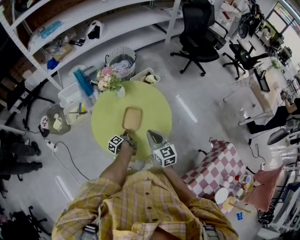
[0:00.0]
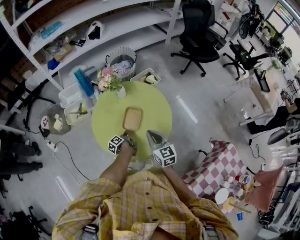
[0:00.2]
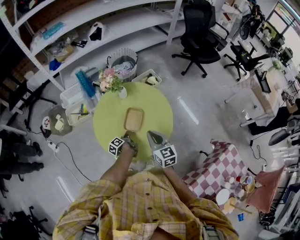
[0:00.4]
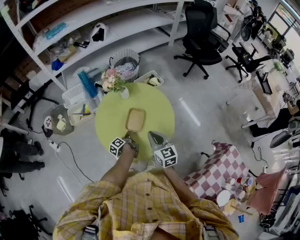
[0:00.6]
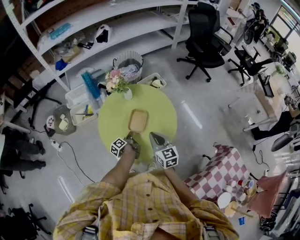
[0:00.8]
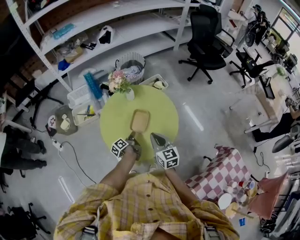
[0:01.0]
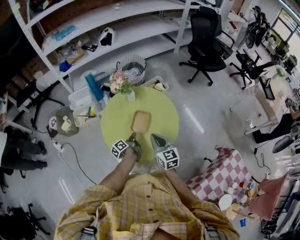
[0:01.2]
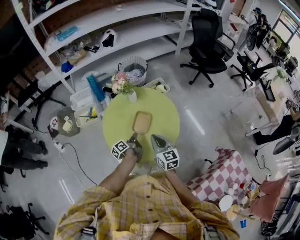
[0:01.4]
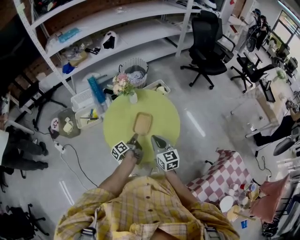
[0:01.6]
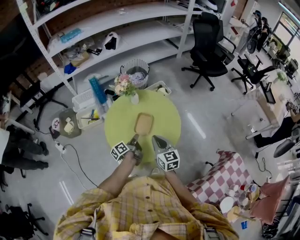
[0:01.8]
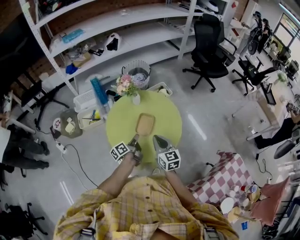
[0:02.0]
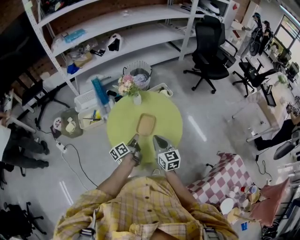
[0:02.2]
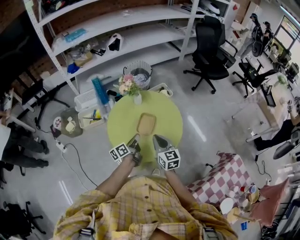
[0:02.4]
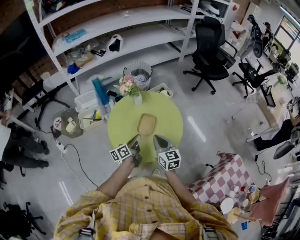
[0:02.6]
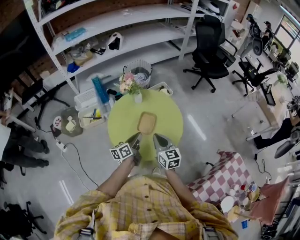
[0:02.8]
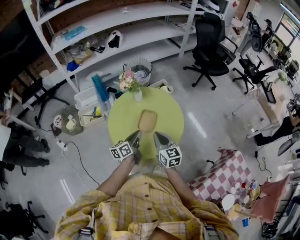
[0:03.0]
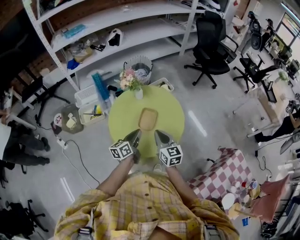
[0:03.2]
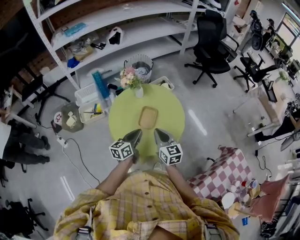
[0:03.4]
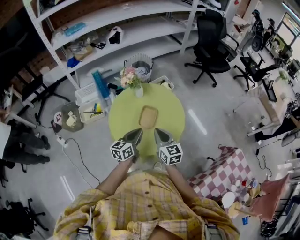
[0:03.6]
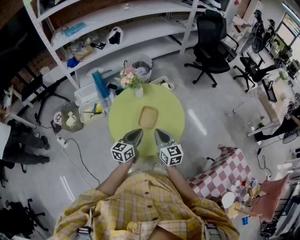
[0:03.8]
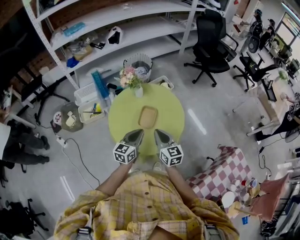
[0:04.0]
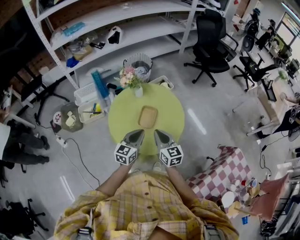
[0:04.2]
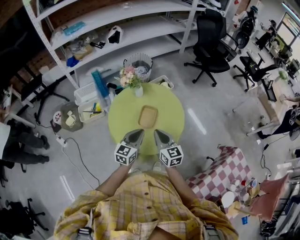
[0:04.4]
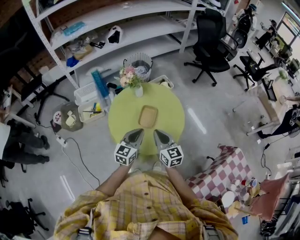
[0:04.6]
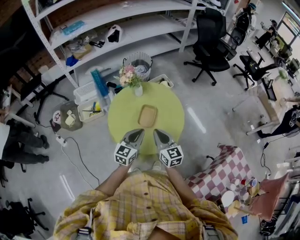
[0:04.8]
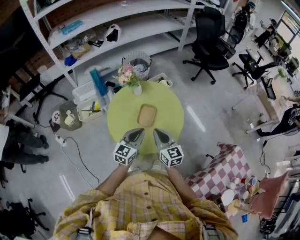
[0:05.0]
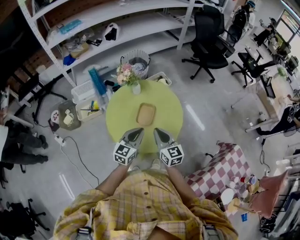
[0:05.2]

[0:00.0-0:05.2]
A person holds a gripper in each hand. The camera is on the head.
0:00.0 to 0:01.8: The right gripper moves about 5 cm.

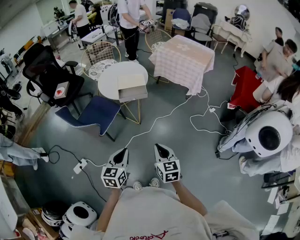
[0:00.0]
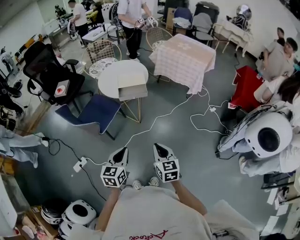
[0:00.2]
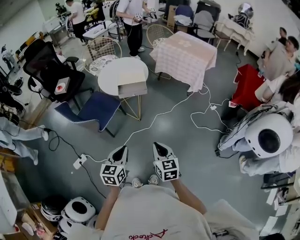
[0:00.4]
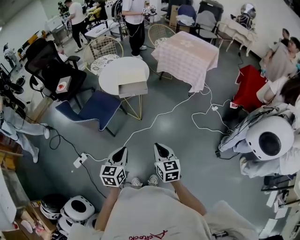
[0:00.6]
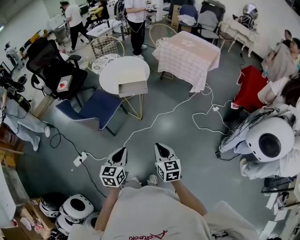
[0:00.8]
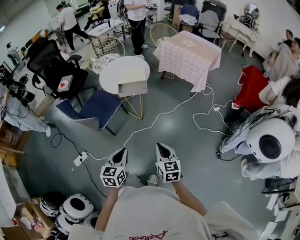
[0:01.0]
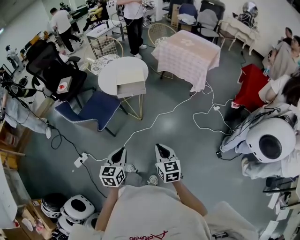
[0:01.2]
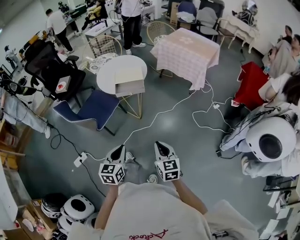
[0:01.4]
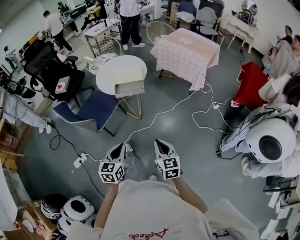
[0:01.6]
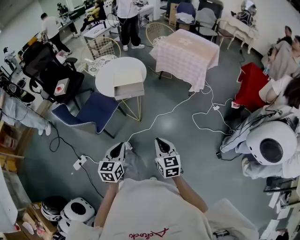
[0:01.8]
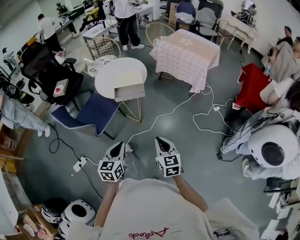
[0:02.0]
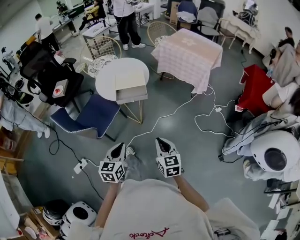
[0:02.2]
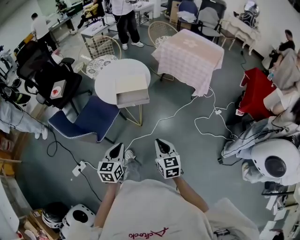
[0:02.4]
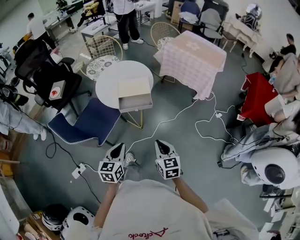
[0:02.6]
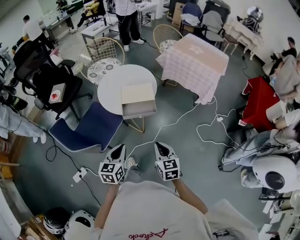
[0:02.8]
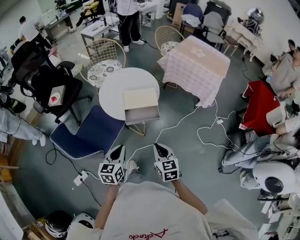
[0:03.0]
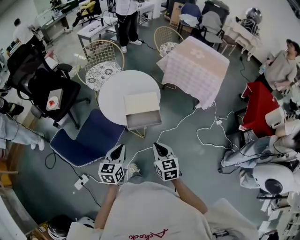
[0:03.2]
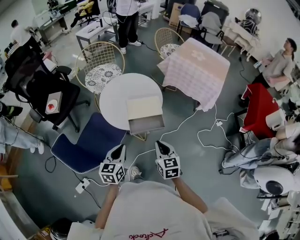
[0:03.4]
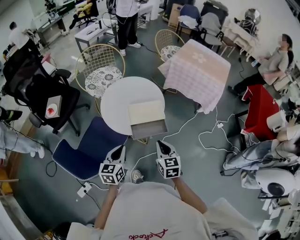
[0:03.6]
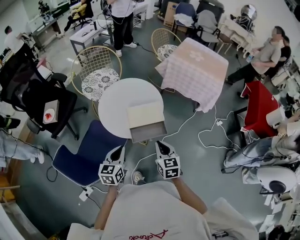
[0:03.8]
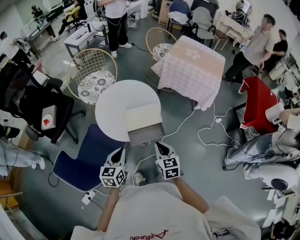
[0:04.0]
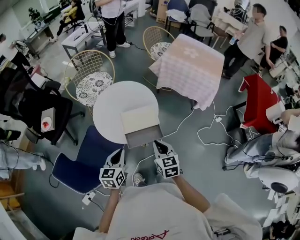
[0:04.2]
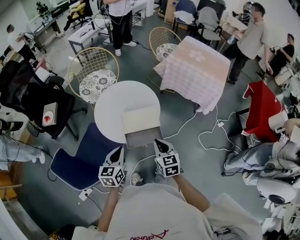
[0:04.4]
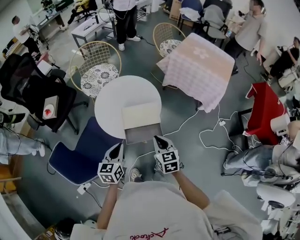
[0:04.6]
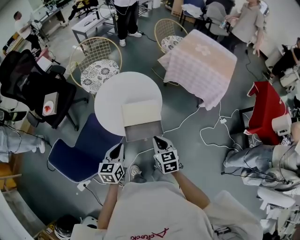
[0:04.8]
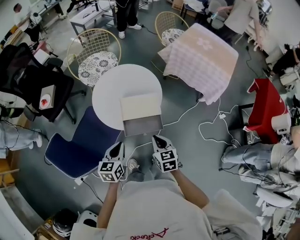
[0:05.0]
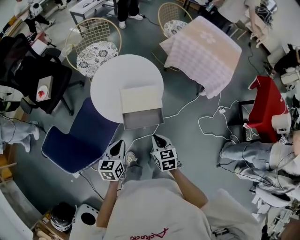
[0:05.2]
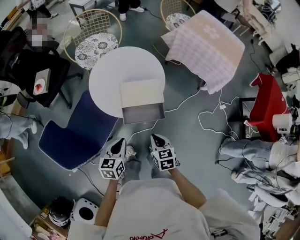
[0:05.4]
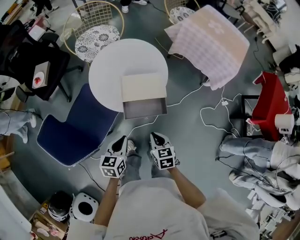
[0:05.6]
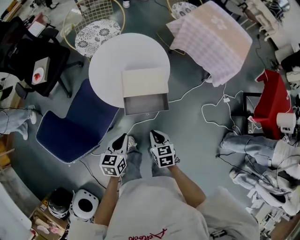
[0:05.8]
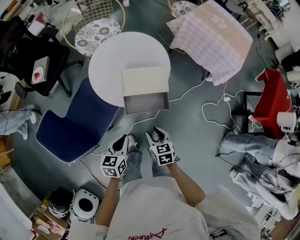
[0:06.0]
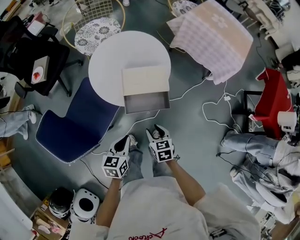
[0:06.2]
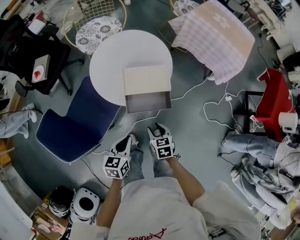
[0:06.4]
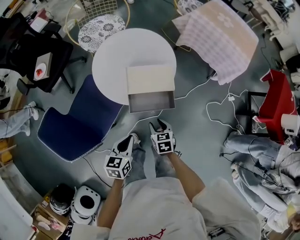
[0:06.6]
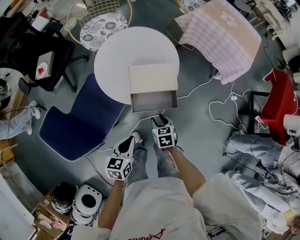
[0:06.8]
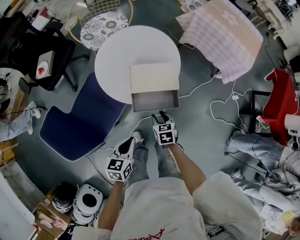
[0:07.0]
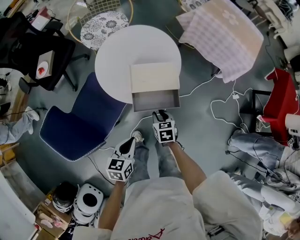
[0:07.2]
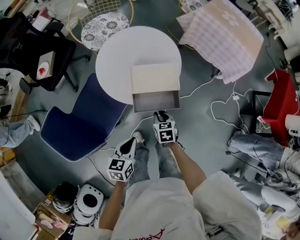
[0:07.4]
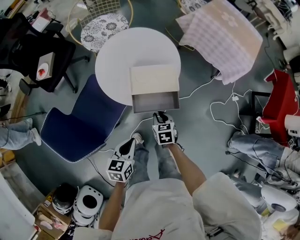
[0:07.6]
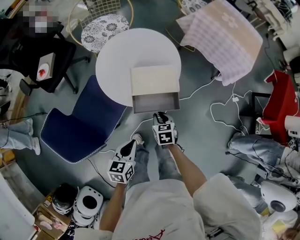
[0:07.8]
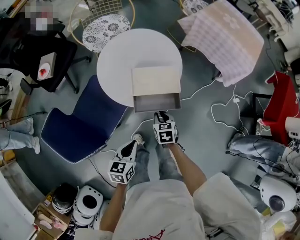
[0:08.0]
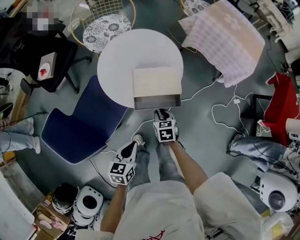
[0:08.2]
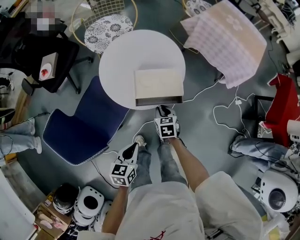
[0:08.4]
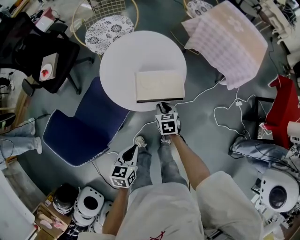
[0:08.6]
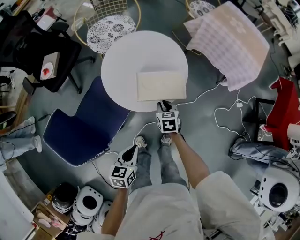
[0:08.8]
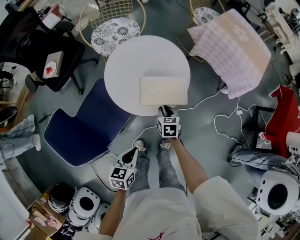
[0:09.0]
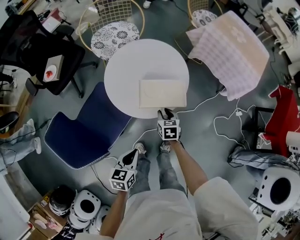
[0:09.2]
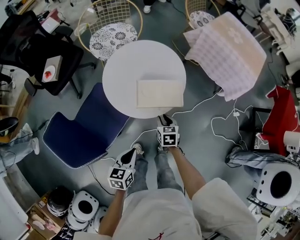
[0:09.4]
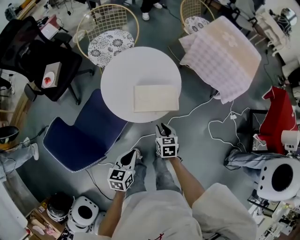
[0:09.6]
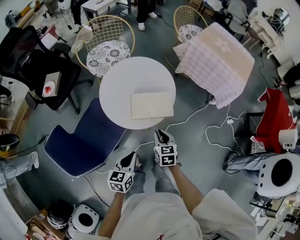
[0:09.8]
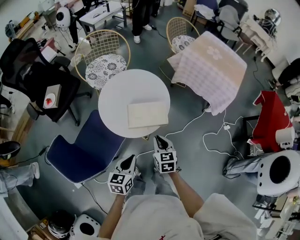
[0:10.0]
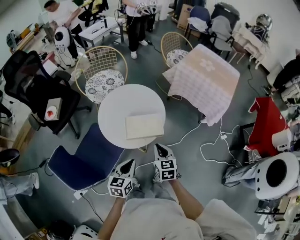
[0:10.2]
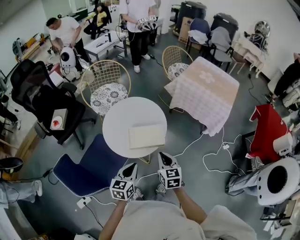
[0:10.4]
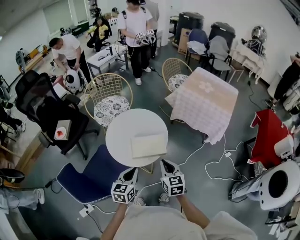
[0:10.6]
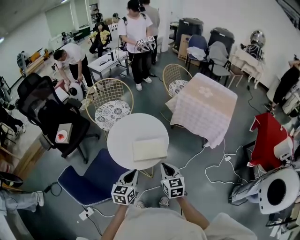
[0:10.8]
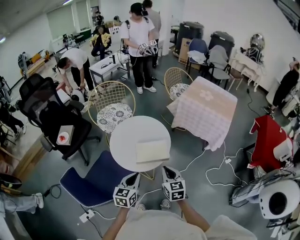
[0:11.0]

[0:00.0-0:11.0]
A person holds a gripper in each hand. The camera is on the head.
0:00.0 to 0:01.6: The left gripper shifts by about 5 cm; the right gripper moves to the right, approximately 5 cm.
0:01.6 to 0:03.2: Both grippers move forward and to the left, about 30 cm.
0:03.2 to 0:04.8: Both grippers move forward, roughly 10 cm.
0:04.8 to 0:06.2: The grippers both shift downward and backward by some 15 cm. The right gripper opens up.
0:06.2 to 0:07.8: The right gripper goes approximately 10 cm forward, and closes.
0:07.8 to 0:09.4: The right gripper shifts approximately 5 cm forward.
0:09.4 to 0:11.0: The right gripper goes roughly 25 cm upward, rotates roughly 30 degrees, and closes. Meanwhile the left gripper heads upward and forward, covering some 15 cm, and swivels some 20 degrees.

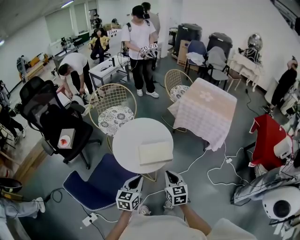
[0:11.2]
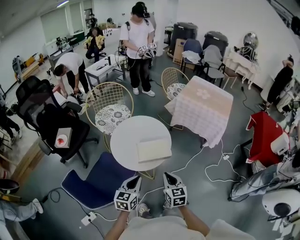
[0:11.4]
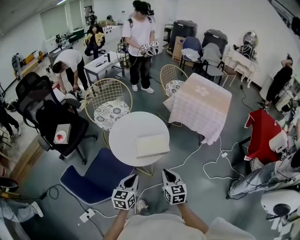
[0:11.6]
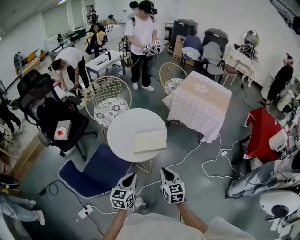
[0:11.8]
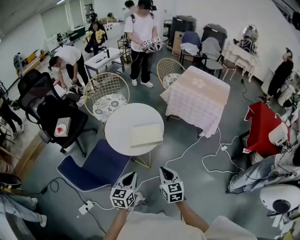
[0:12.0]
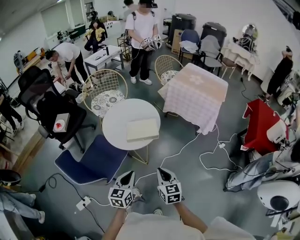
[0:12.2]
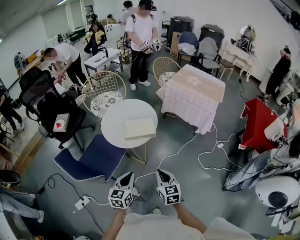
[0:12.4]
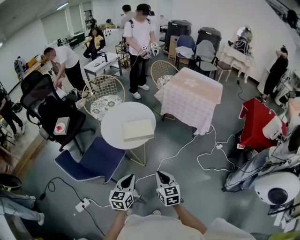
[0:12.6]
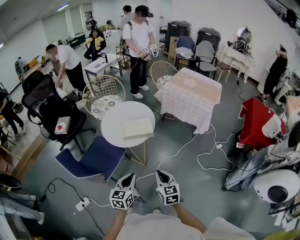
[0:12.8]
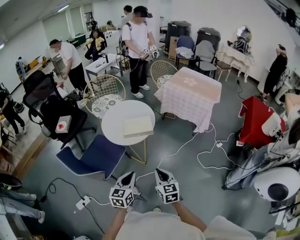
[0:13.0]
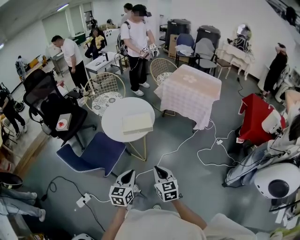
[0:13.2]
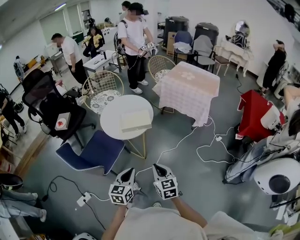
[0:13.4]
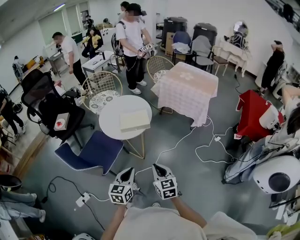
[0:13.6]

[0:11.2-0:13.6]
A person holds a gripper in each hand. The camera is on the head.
0:11.2 to 0:12.4: Both grippers travel together backward and to the right, some 20 cm.
0:12.4 to 0:13.6: The two grippers go roughly 5 cm backward.

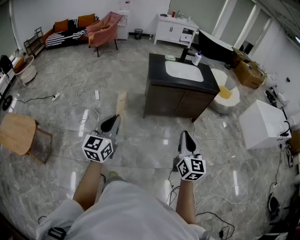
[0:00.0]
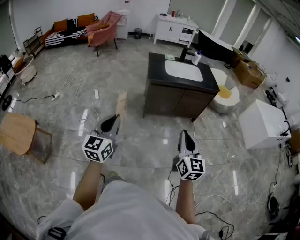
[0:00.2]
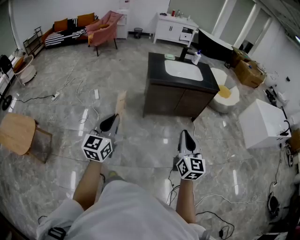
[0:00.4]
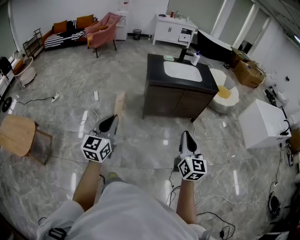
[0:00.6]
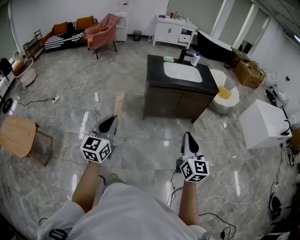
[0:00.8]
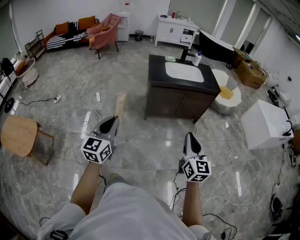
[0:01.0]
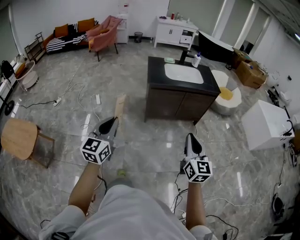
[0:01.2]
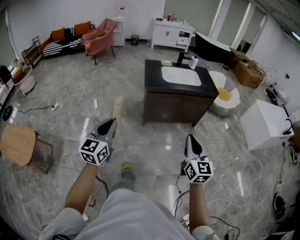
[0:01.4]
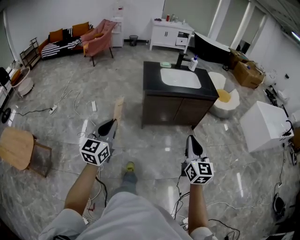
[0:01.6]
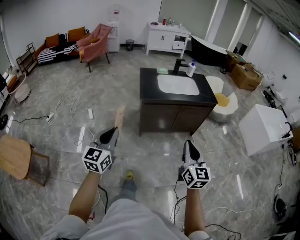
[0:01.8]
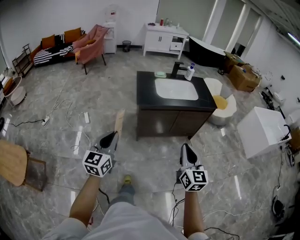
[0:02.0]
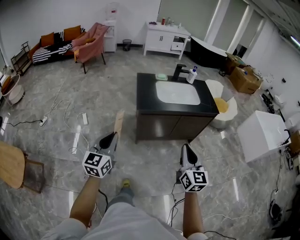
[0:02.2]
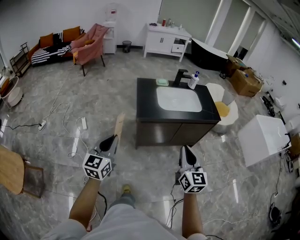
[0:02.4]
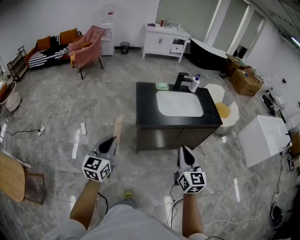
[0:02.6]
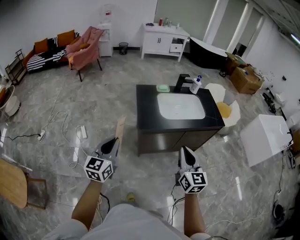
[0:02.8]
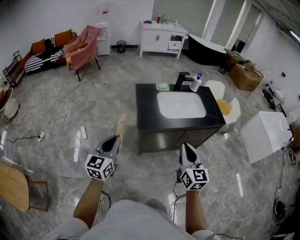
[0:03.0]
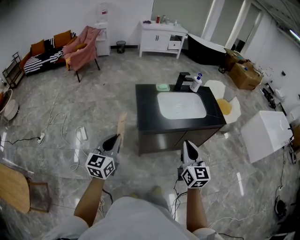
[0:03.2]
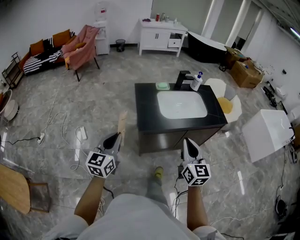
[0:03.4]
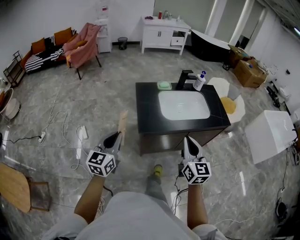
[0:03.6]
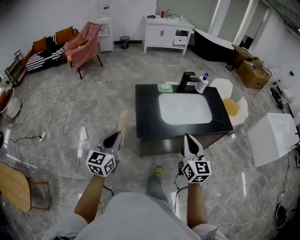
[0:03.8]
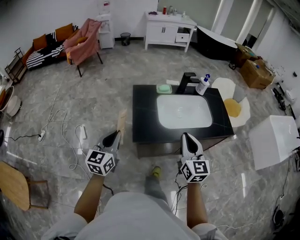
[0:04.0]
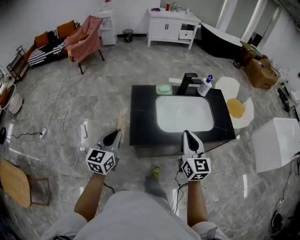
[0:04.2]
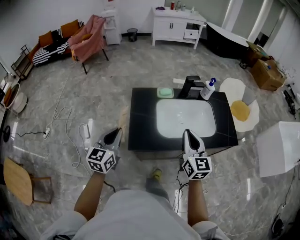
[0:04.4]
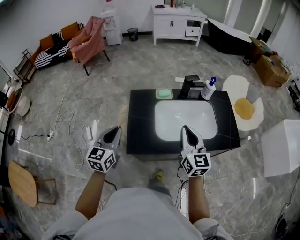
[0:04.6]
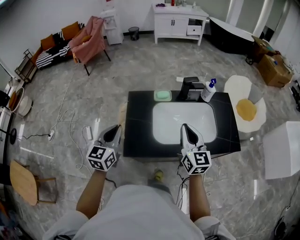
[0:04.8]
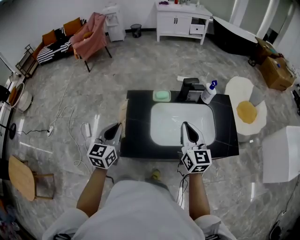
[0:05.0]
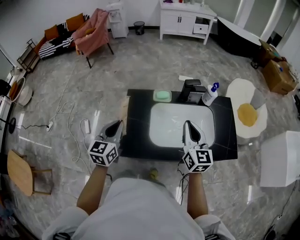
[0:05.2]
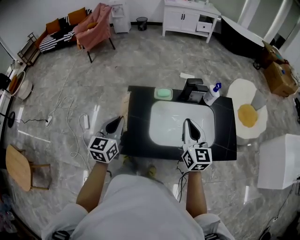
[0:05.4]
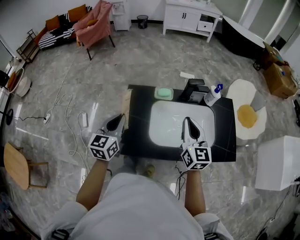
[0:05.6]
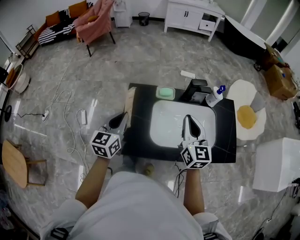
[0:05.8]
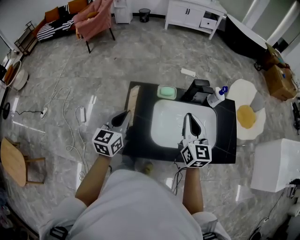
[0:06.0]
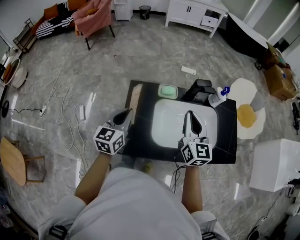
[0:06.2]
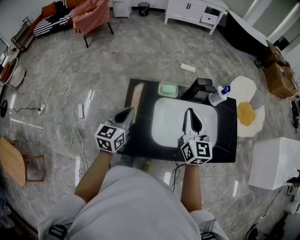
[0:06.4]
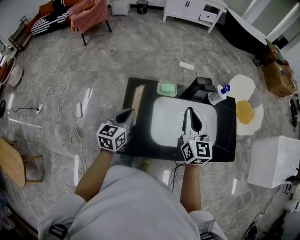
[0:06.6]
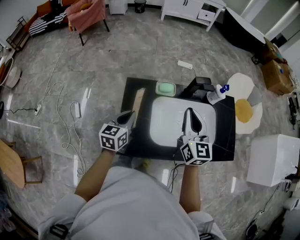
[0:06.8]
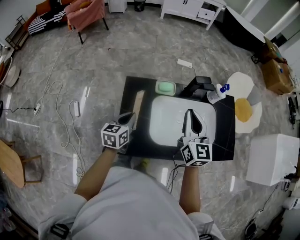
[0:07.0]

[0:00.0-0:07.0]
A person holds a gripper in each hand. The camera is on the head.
0:00.0 to 0:01.4: The left gripper shifts by approximately 5 cm. The right gripper ends up some 5 cm from where it was.
0:01.4 to 0:02.8: The two grippers travel together, forward, about 40 cm.
0:02.8 to 0:04.2: The grippers both shift forward by approximately 30 cm.
0:04.2 to 0:05.6: The left gripper is displaced forward and to the right by approximately 20 cm; the right gripper moves forward, about 20 cm.
0:05.6 to 0:07.0: The left gripper heads downward and forward, covering some 15 cm, and swivels approximately 20 degrees, while the right gripper goes approximately 5 cm forward.
